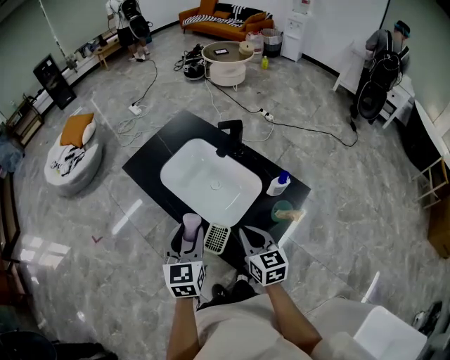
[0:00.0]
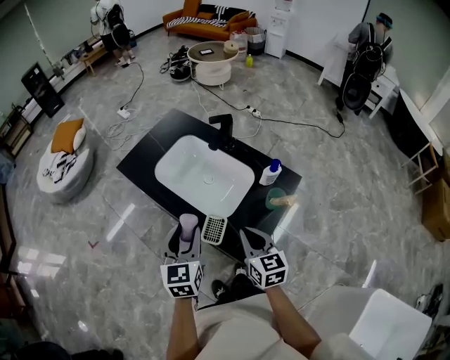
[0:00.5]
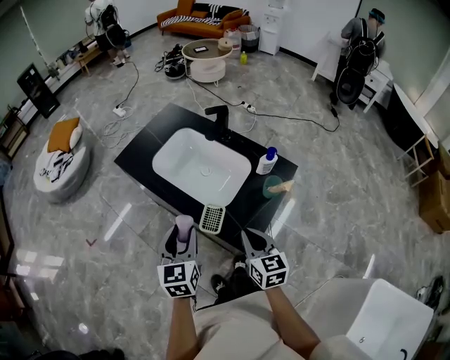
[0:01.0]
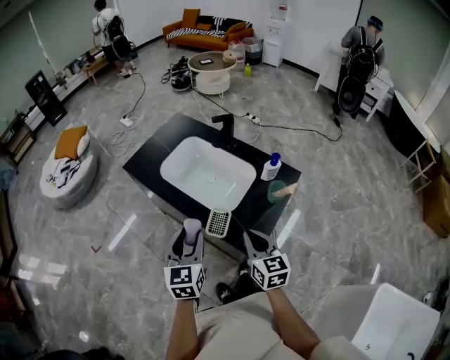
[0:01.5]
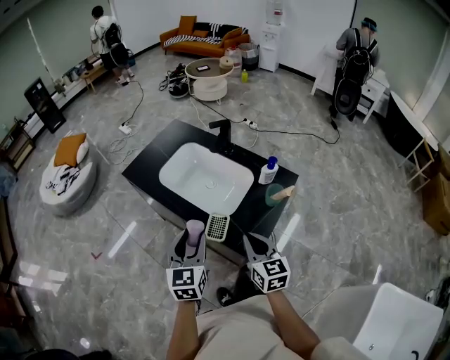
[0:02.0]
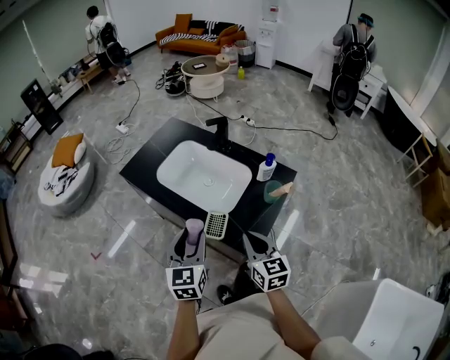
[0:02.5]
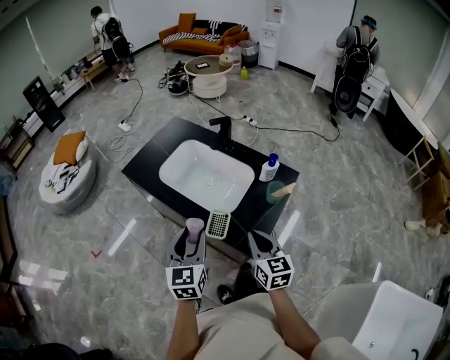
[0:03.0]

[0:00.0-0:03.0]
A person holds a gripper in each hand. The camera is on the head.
0:00.0 to 0:01.5: The grippers both shift backward by roughly 10 cm.
0:01.5 to 0:03.0: The grippers make only small movements.

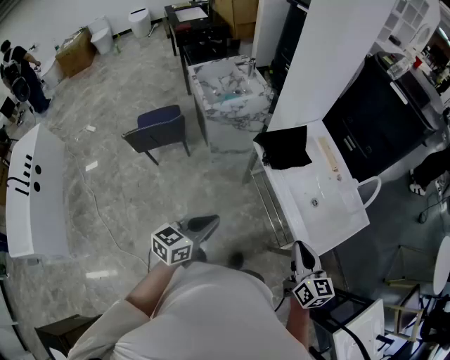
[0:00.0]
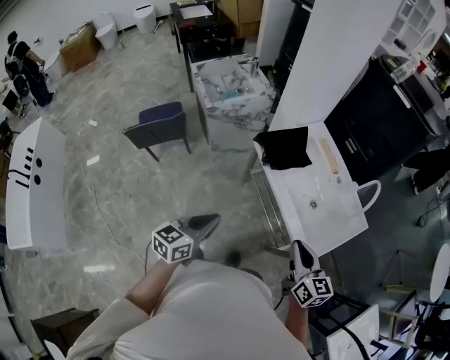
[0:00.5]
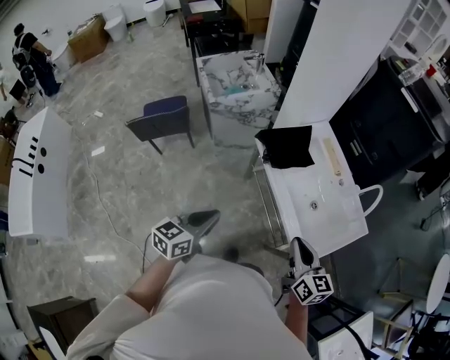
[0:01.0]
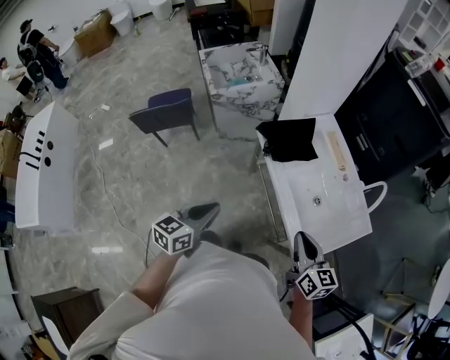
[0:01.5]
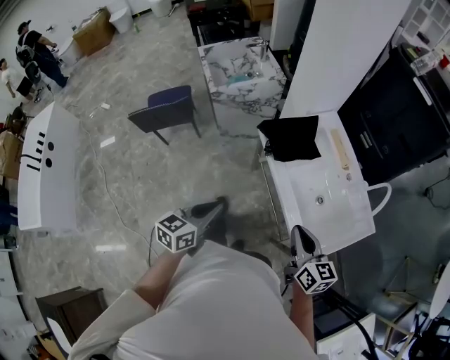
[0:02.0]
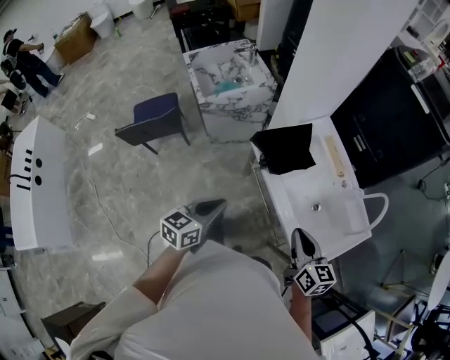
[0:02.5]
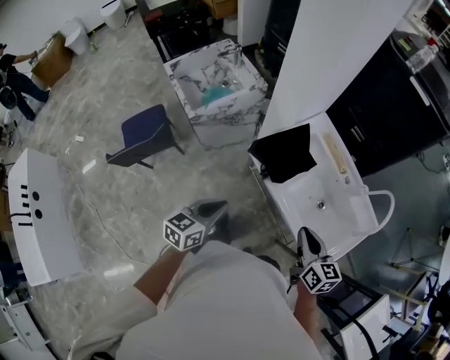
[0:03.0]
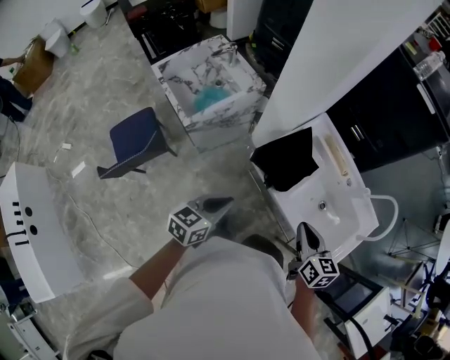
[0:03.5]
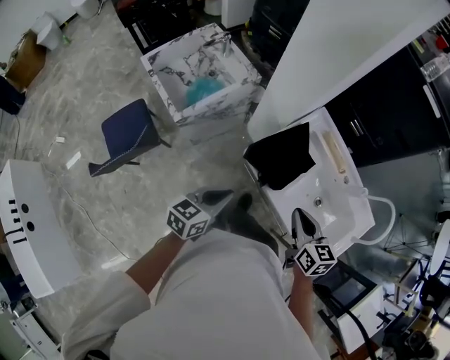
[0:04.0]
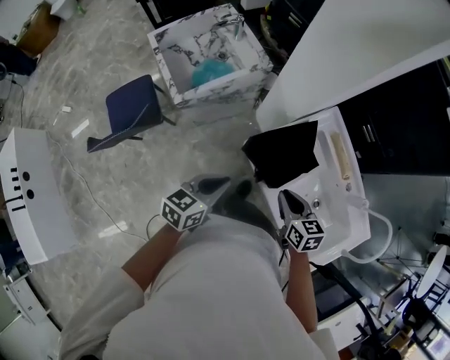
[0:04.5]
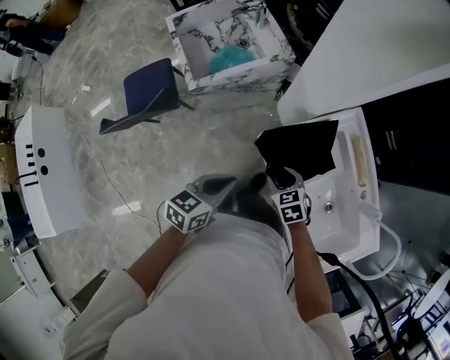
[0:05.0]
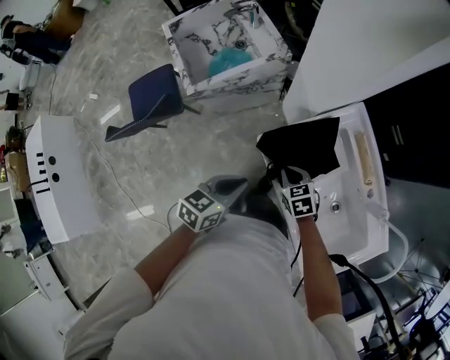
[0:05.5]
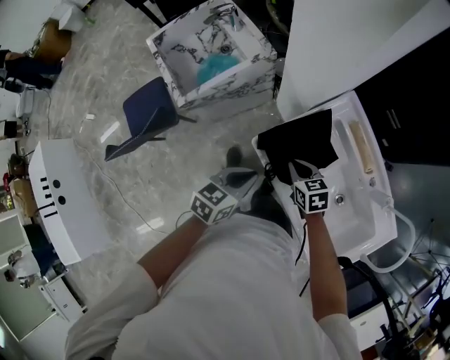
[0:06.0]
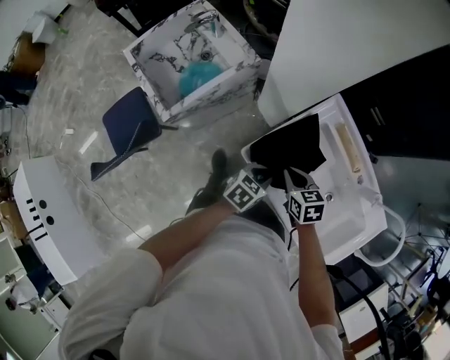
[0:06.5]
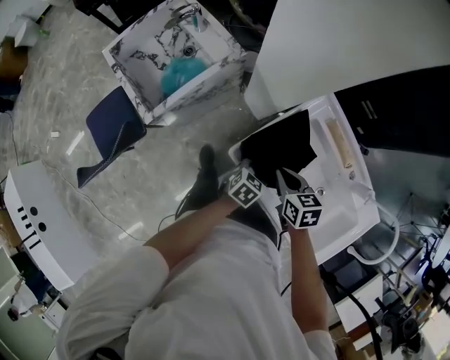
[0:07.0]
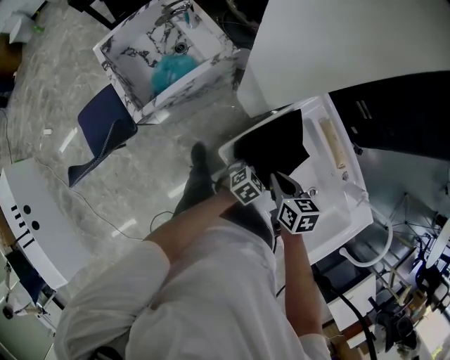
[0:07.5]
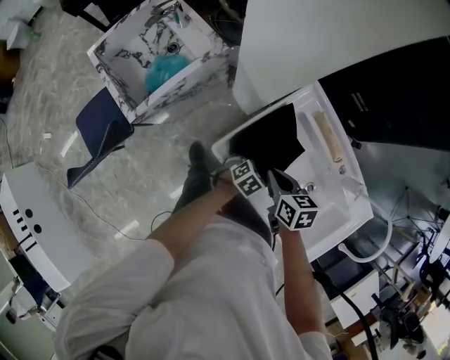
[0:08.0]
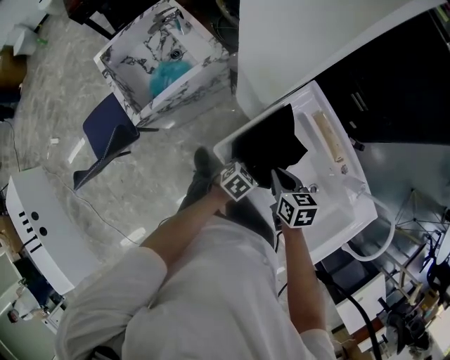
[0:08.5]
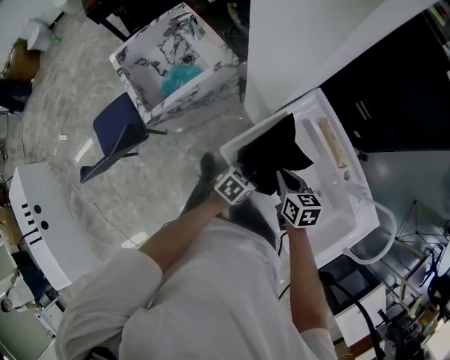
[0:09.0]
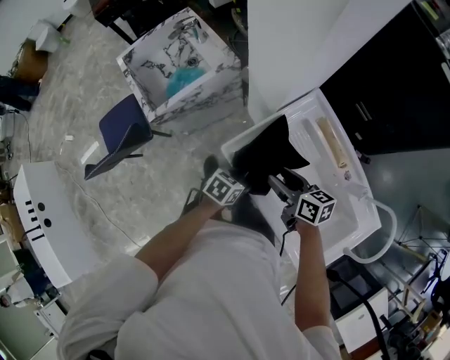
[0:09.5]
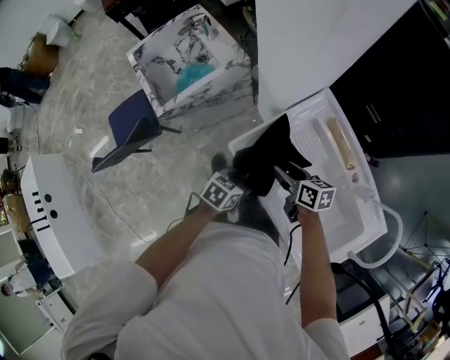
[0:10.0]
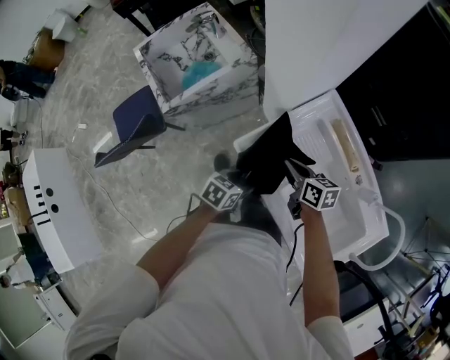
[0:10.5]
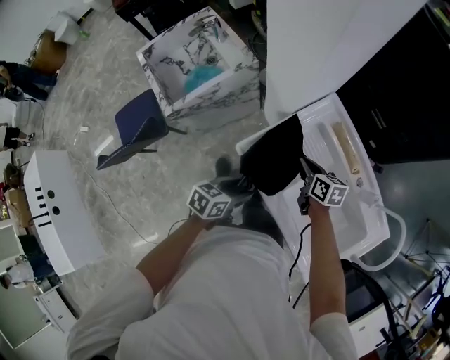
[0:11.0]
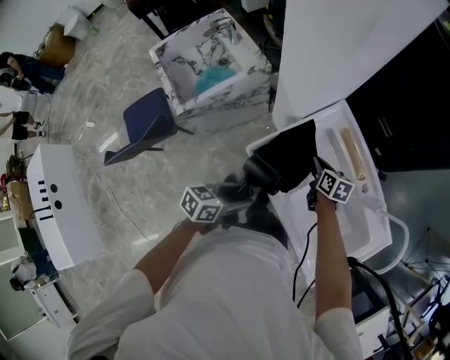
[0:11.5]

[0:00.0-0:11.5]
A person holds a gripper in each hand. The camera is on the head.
0:00.0 to 0:02.0: The left gripper shifts approximately 10 cm forward and to the right, while the right gripper heads forward, covering approximately 10 cm.
0:02.0 to 0:04.0: Both grippers move forward and to the left, about 30 cm. The left gripper turns by roughly 30 degrees; the right gripper swivels some 20 degrees.
0:04.0 to 0:06.0: The left gripper goes roughly 15 cm to the right, forward and downward. The right gripper shifts approximately 25 cm downward and forward, changes its angle by about 30 degrees, and opens, then closes once more.
0:06.0 to 0:07.5: The right gripper turns by roughly 20 degrees. The left gripper travels downward, to the right and forward by some 25 cm, rotates roughly 30 degrees, and opens up.
0:07.5 to 0:09.5: The left gripper heads backward and upward, covering about 10 cm, and swivels some 20 degrees. The right gripper moves approximately 5 cm, rotates about 20 degrees, and opens.
0:09.5 to 0:11.5: The right gripper is displaced forward and downward by about 10 cm, changes its angle by some 20 degrees, and closes up, while the left gripper goes some 15 cm upward and backward, and changes its angle by roughly 20 degrees.

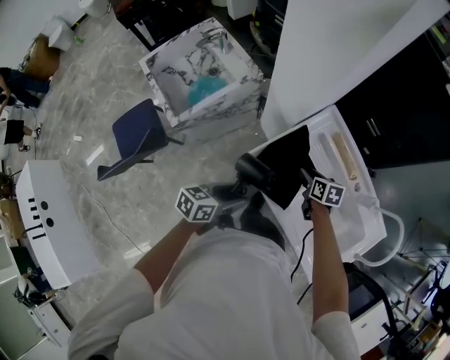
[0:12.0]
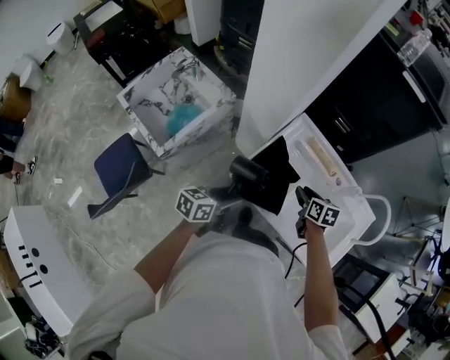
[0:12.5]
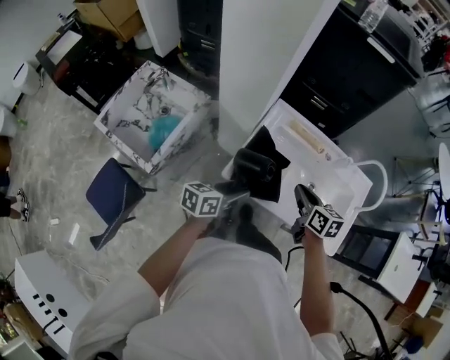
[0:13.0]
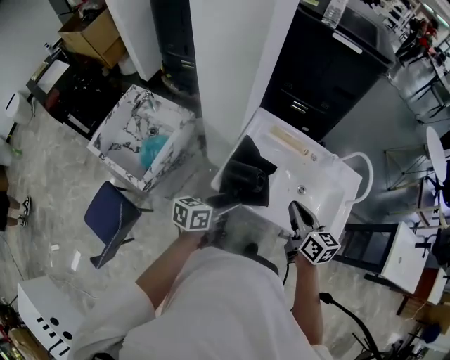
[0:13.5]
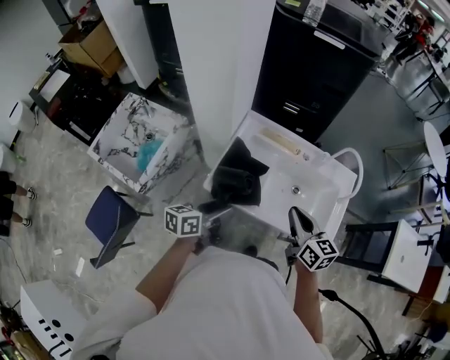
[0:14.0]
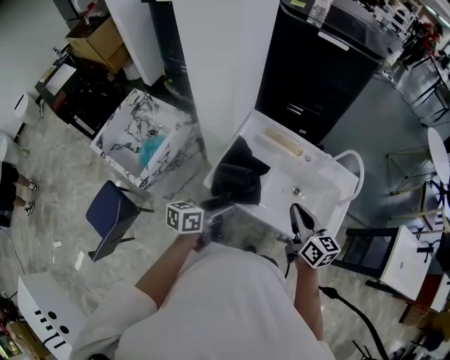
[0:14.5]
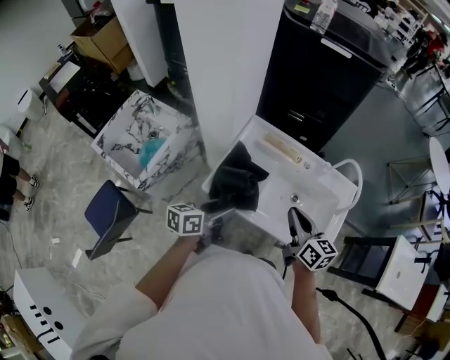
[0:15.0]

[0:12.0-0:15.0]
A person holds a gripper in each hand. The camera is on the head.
0:12.0 to 0:13.5: The left gripper goes some 10 cm upward. Meanwhile the right gripper heads upward, covering some 20 cm, swivels approximately 40 degrees, and closes its fingers.
0:13.5 to 0:15.0: Both grippers move to the right, roughly 5 cm.

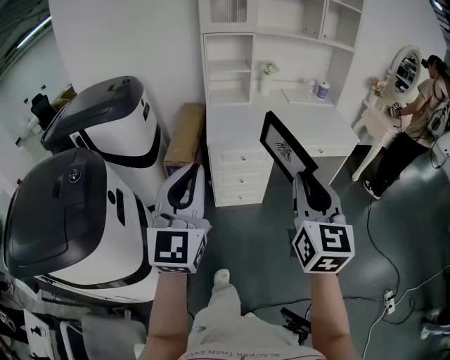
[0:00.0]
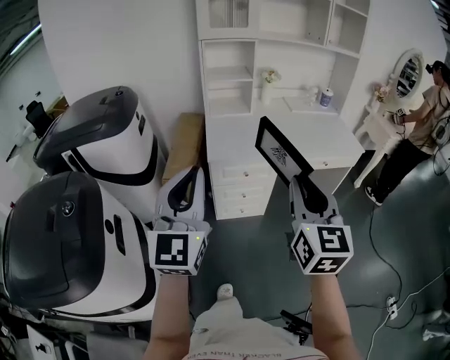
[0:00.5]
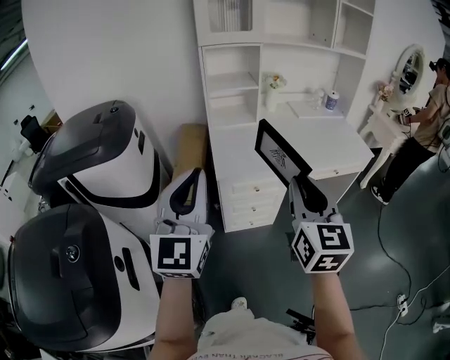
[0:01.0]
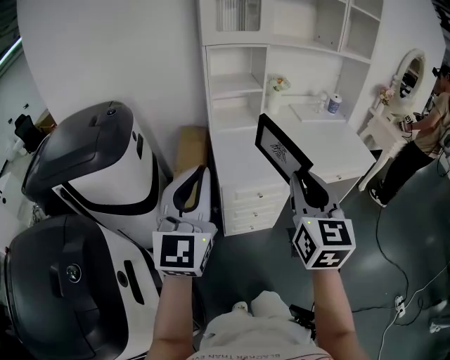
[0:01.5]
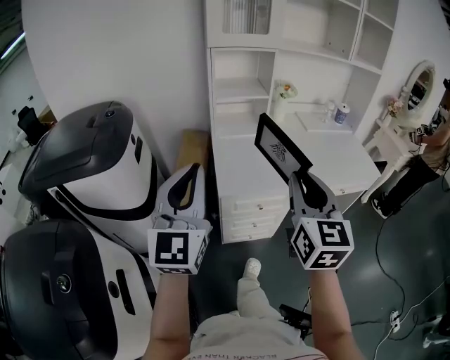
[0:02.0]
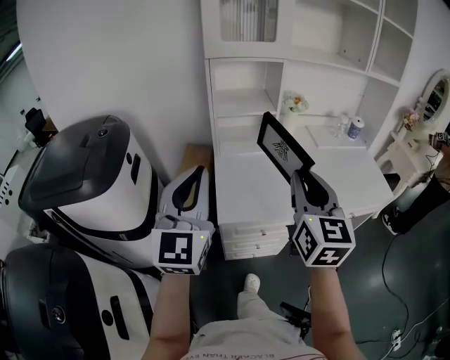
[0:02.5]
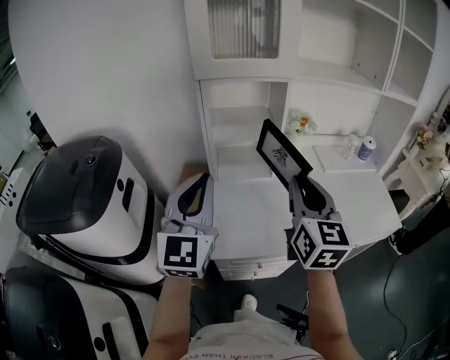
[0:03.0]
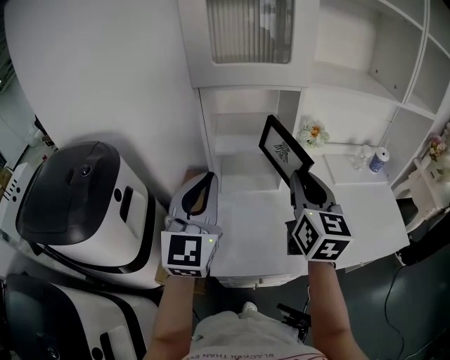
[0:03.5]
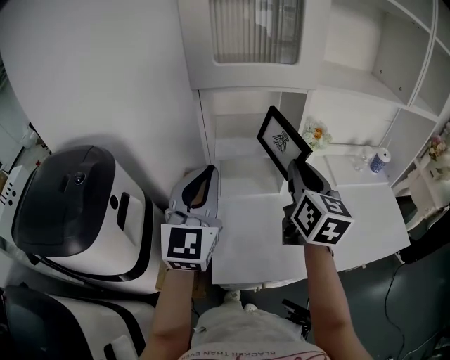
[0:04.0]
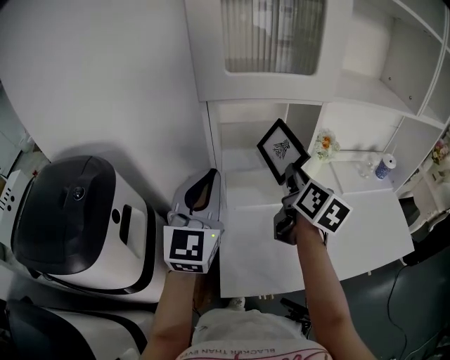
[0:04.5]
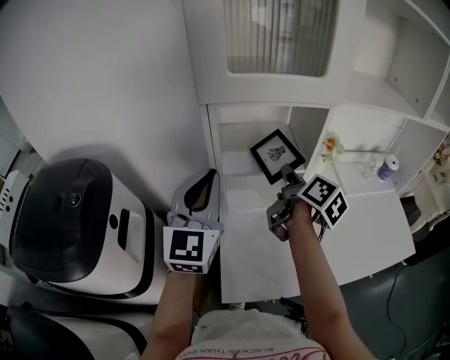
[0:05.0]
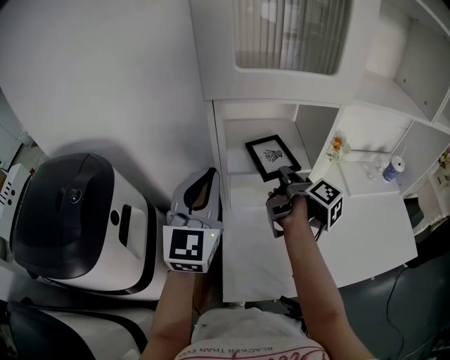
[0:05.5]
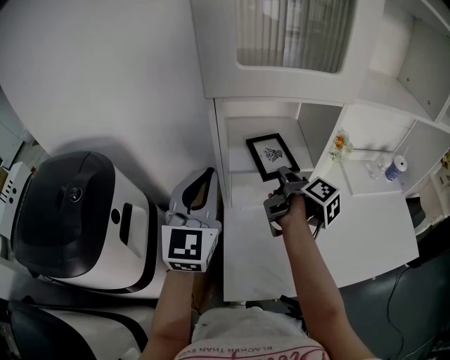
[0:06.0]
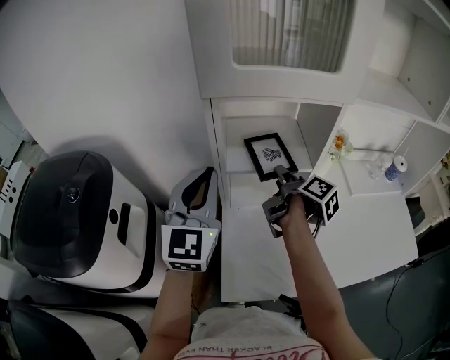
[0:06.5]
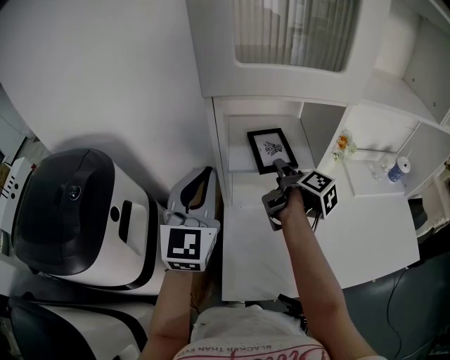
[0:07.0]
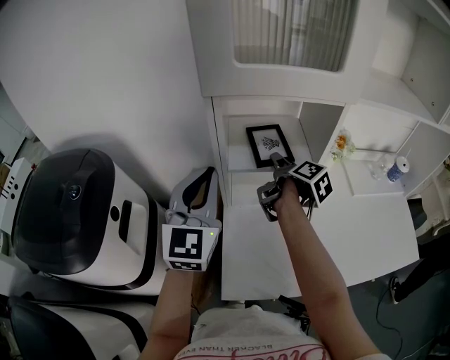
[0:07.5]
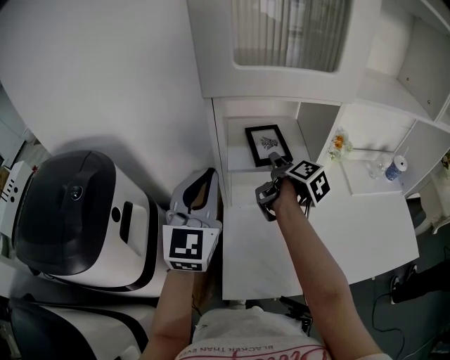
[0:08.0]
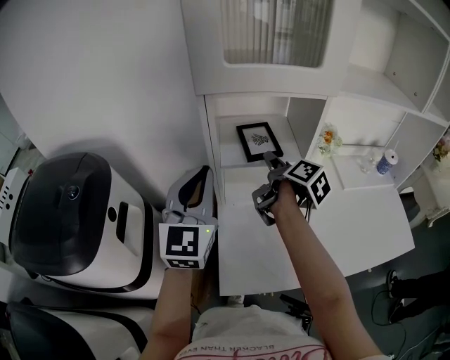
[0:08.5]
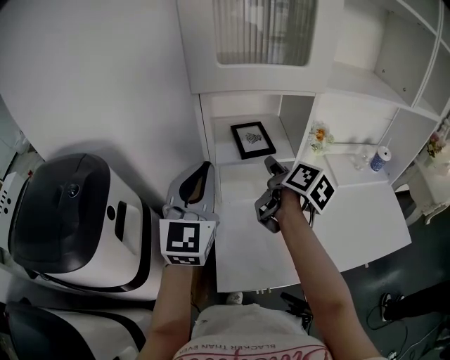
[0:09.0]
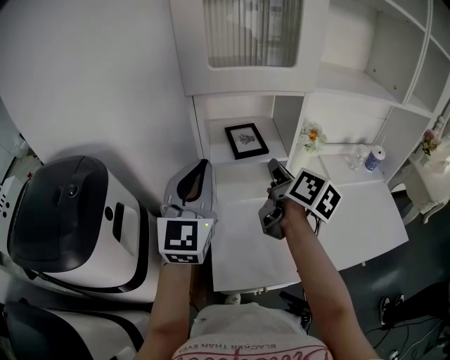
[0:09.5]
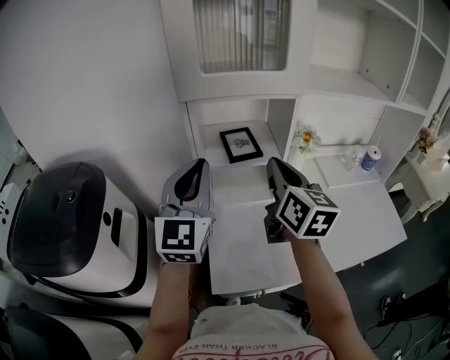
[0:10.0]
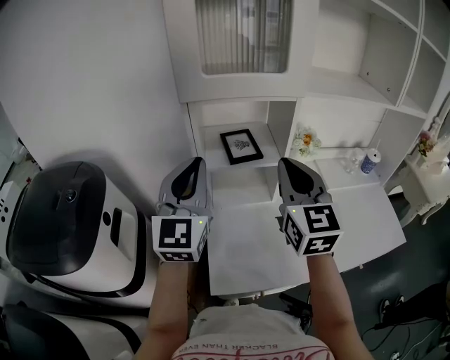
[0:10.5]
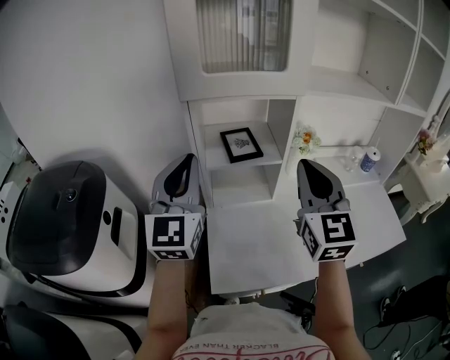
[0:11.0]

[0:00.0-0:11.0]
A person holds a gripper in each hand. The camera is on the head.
0:00.0 to 0:02.0: The grippers both shift forward and to the left by some 30 cm.
0:02.0 to 0:03.5: The grippers both shift forward by about 35 cm.
0:03.5 to 0:05.5: The right gripper travels forward, downward and to the left by approximately 20 cm, and rotates around the line of its fingers by approximately 80 degrees, clockwise from behind. The left gripper goes roughly 15 cm forward and to the left.
0:05.5 to 0:07.5: The right gripper changes place by about 5 cm, and opens up.
0:07.5 to 0:09.0: The right gripper heads backward and upward, covering some 10 cm, and closes up; the left gripper changes place by approximately 5 cm.
0:09.0 to 0:11.0: The right gripper moves upward and backward, approximately 20 cm, rotates around the line of its fingers by approximately 70 degrees, counterclockwise from behind, and closes up.
